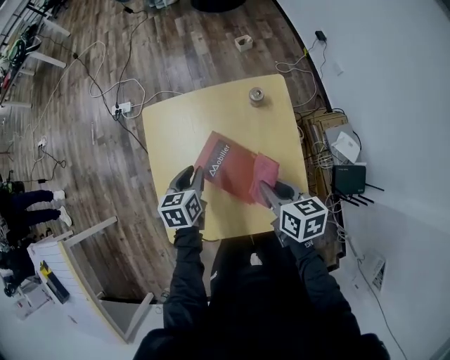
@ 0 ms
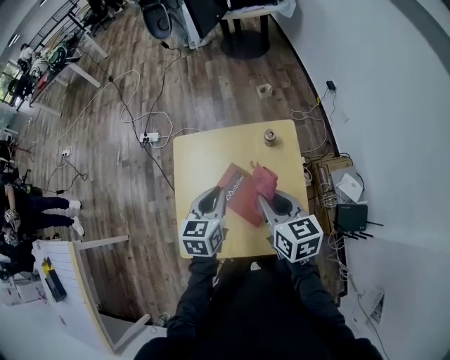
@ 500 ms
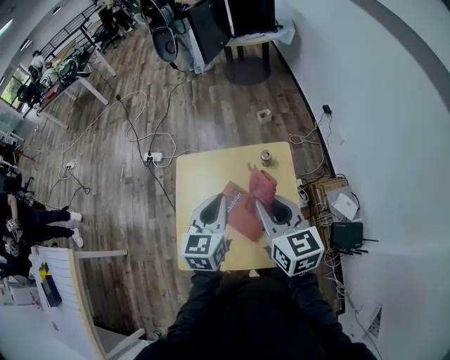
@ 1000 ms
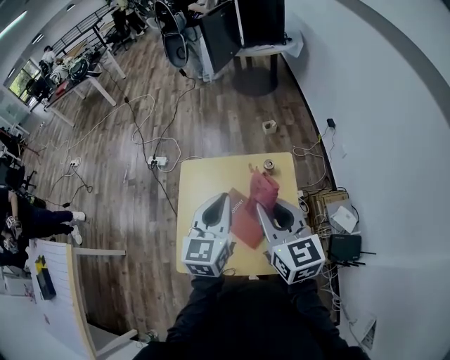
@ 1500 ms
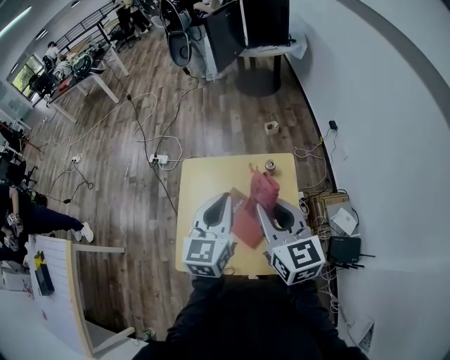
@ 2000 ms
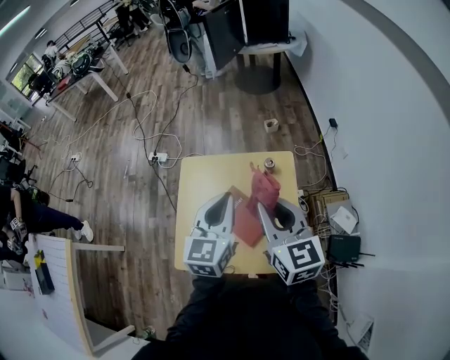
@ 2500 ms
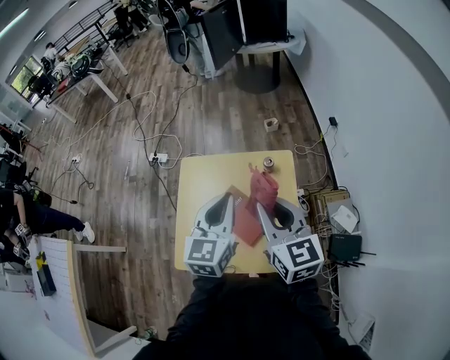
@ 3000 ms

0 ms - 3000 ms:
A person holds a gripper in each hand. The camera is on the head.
0 ms - 1500 ms: Both grippers travel together upward, approximately 30 cm. The right gripper turns by about 40 degrees. The left gripper tips its fingers upward by roughly 30 degrees.
1500 ms - 3000 ms: There are only small adjustments of the grippers.

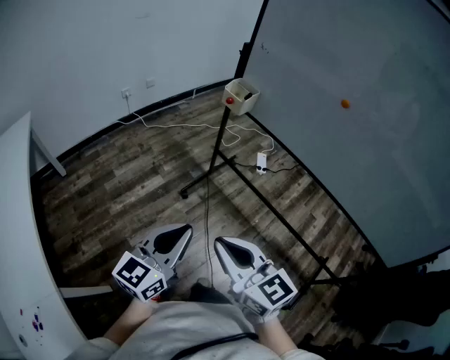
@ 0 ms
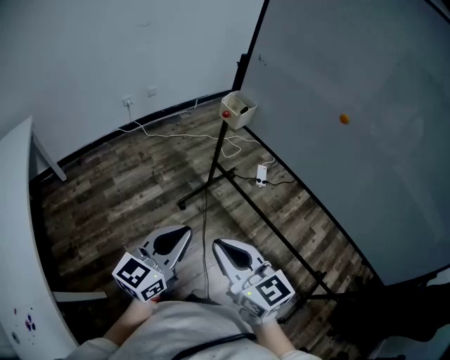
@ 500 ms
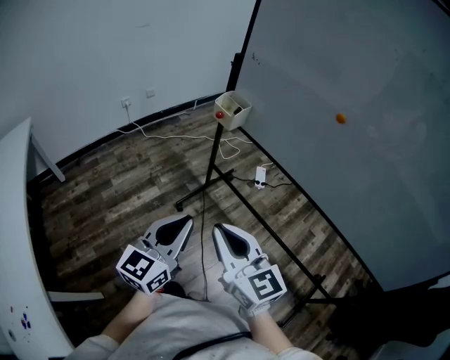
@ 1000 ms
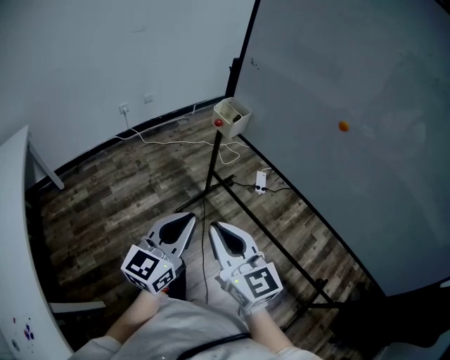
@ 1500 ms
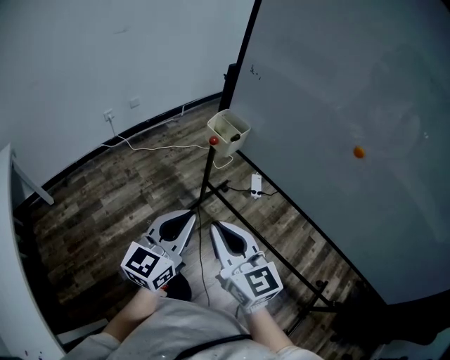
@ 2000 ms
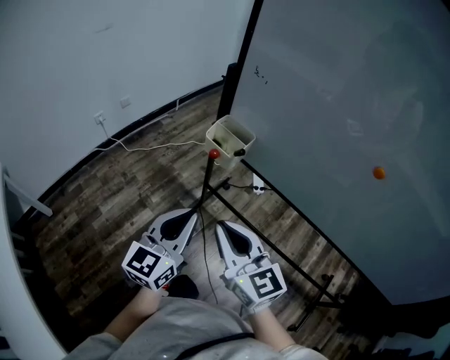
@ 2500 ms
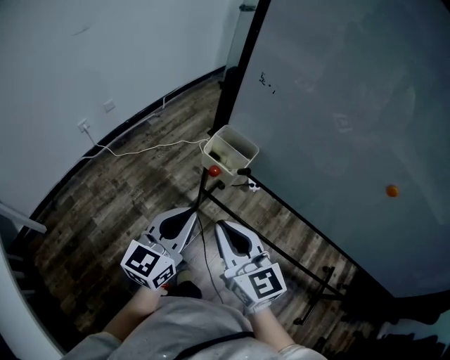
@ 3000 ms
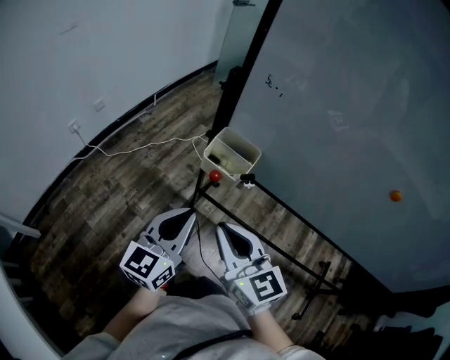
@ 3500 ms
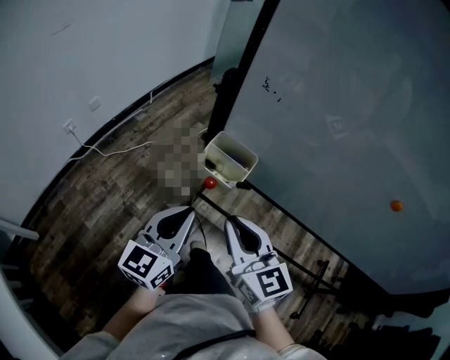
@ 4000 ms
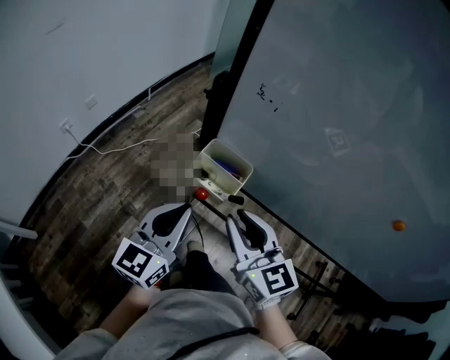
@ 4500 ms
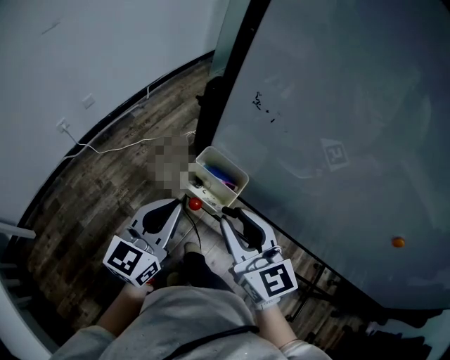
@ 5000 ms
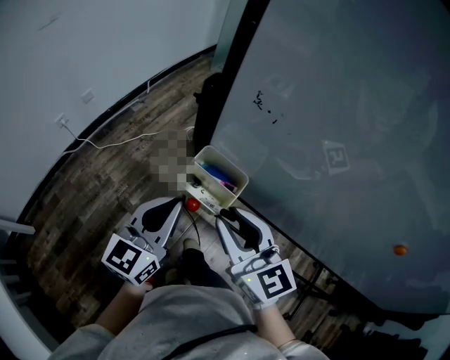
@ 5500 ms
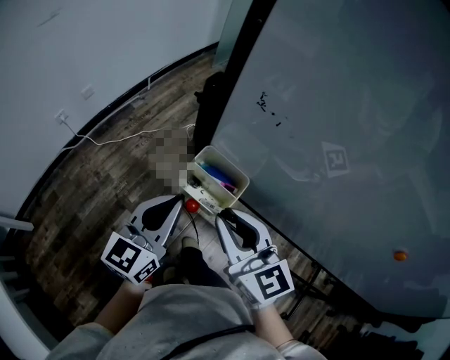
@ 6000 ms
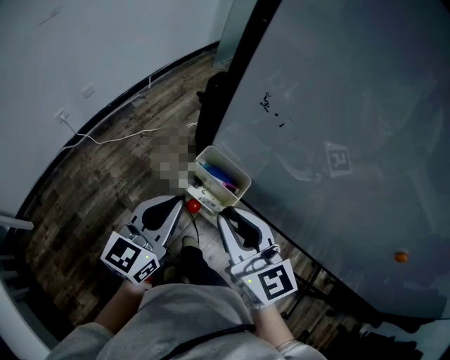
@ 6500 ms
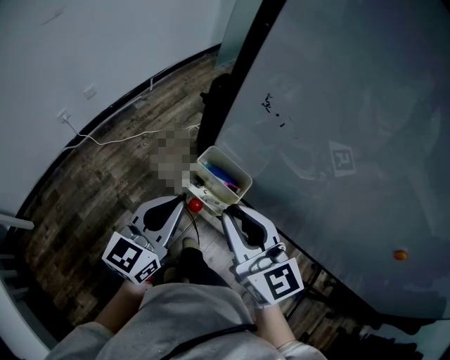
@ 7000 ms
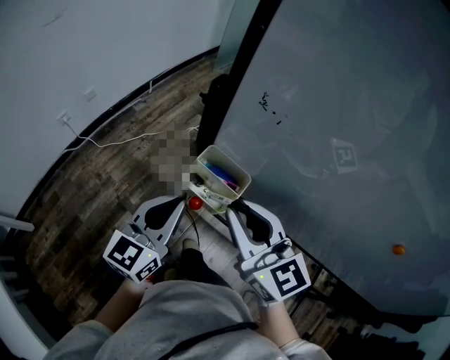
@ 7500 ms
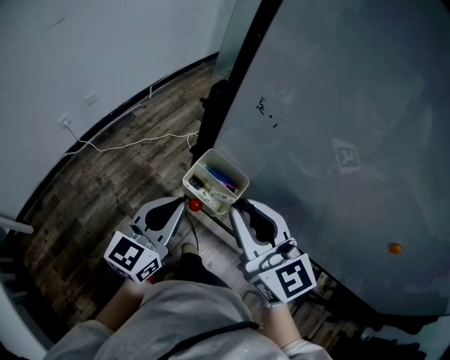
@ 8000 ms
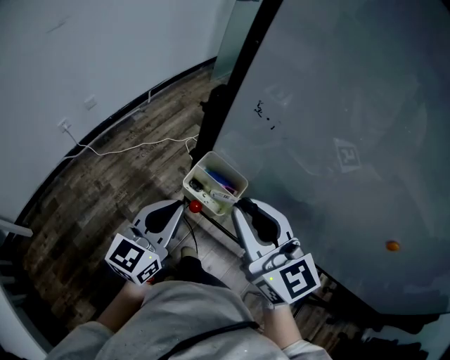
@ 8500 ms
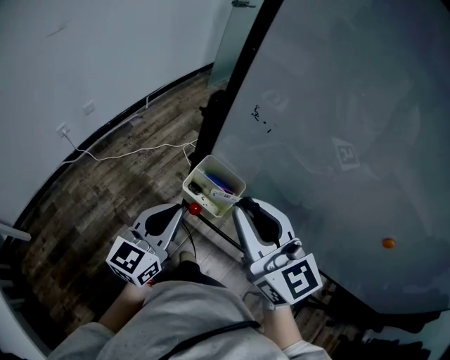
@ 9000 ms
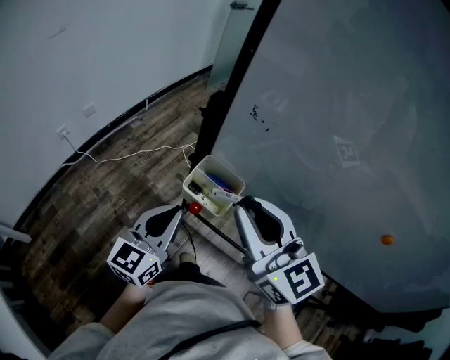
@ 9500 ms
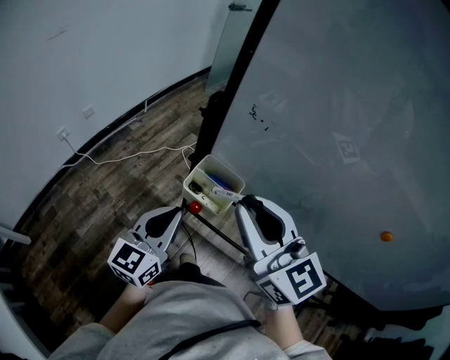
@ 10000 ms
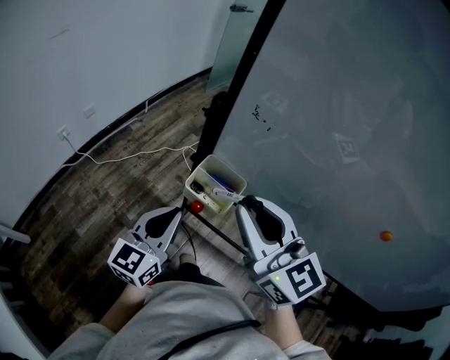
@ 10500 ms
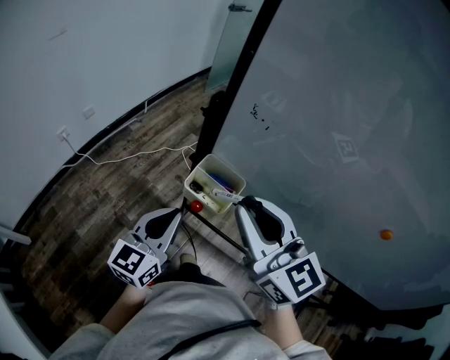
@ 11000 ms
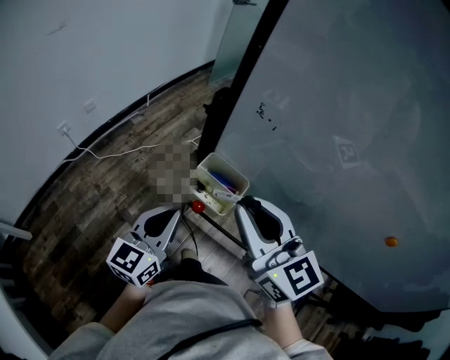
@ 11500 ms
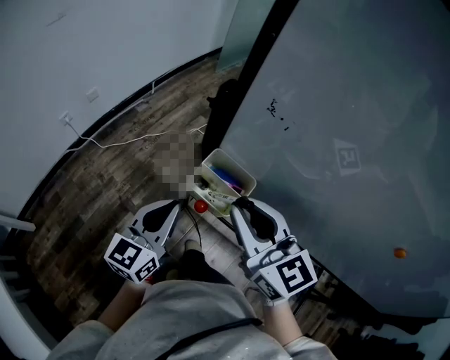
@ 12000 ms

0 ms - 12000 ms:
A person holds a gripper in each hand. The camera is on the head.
0 ms - 2000 ms: The two grippers go some 25 cm forward.
2000 ms - 4000 ms: The two grippers go roughly 25 cm forward.
4000 ms - 6000 ms: The grippers both shift forward by roughly 10 cm.
6000 ms - 8000 ms: The right gripper moves upward, approximately 5 cm.
8000 ms - 10000 ms: The right gripper is displaced upward by some 5 cm.
10000 ms - 12000 ms: The right gripper moves downward, approximately 5 cm.

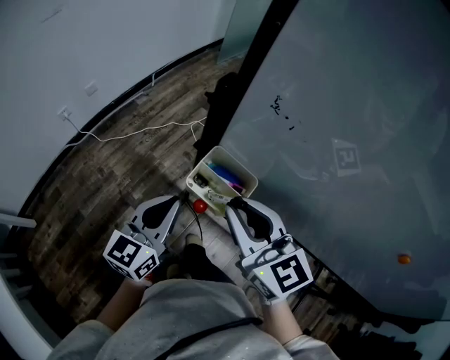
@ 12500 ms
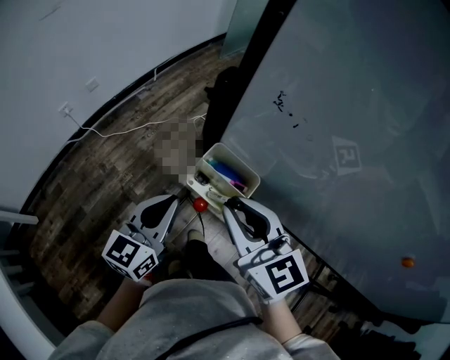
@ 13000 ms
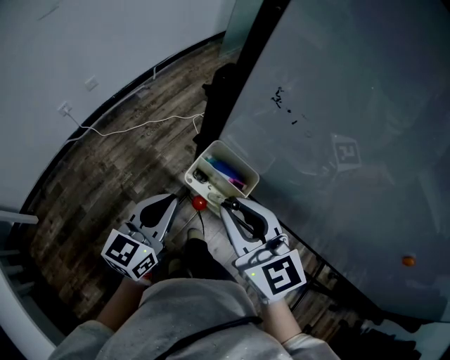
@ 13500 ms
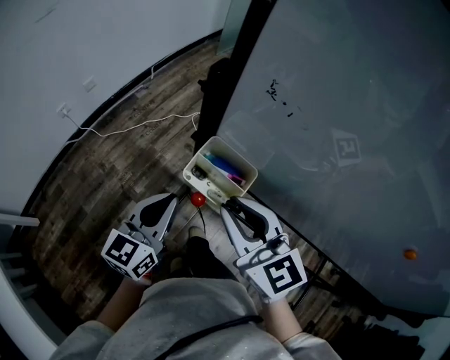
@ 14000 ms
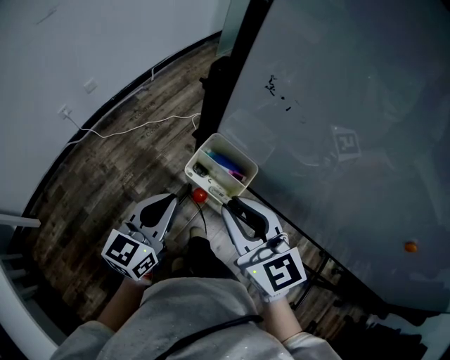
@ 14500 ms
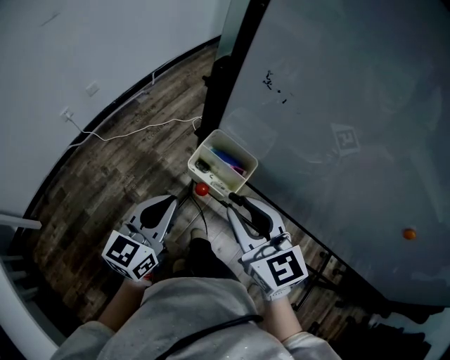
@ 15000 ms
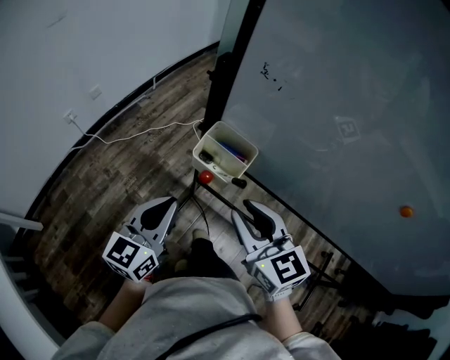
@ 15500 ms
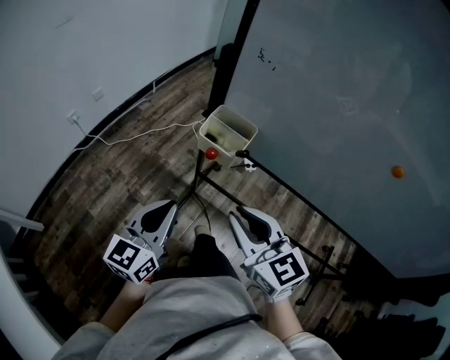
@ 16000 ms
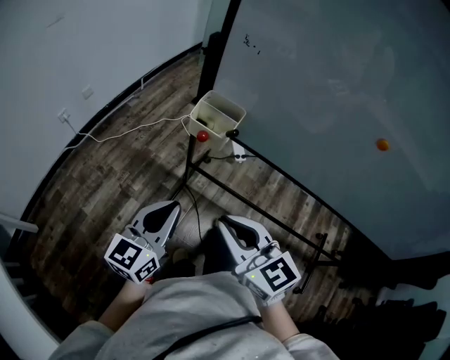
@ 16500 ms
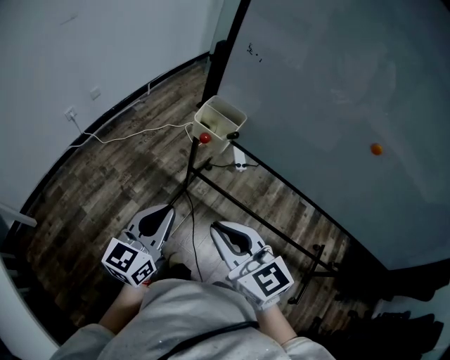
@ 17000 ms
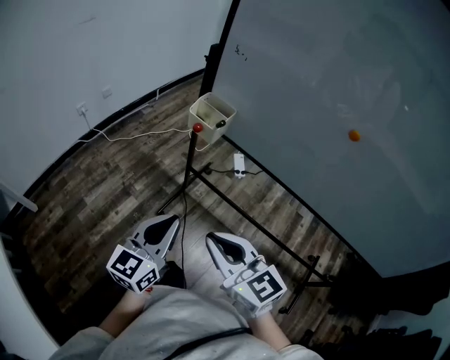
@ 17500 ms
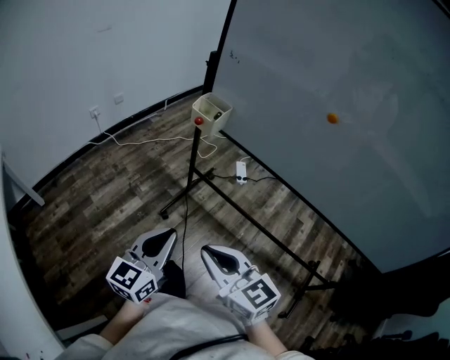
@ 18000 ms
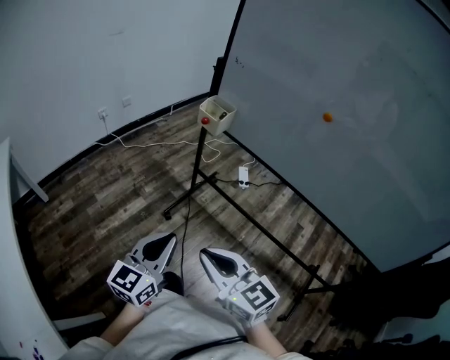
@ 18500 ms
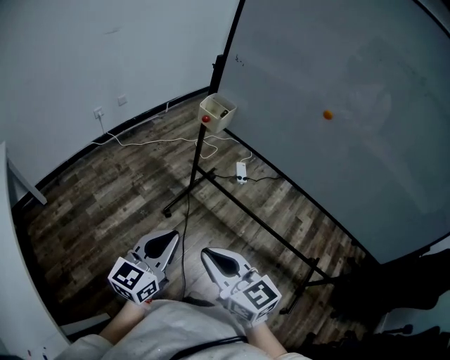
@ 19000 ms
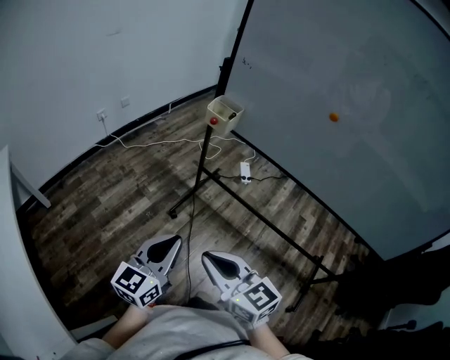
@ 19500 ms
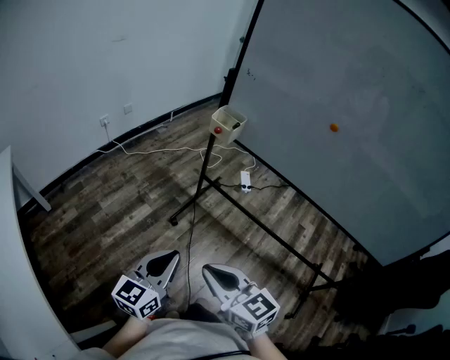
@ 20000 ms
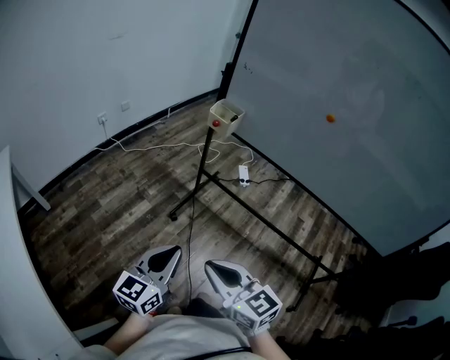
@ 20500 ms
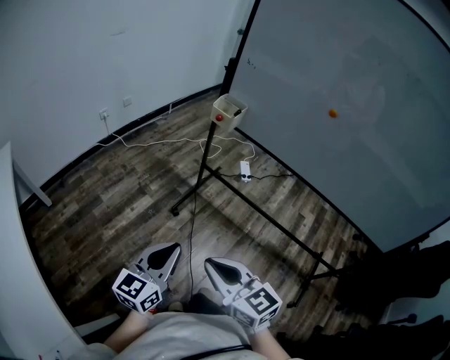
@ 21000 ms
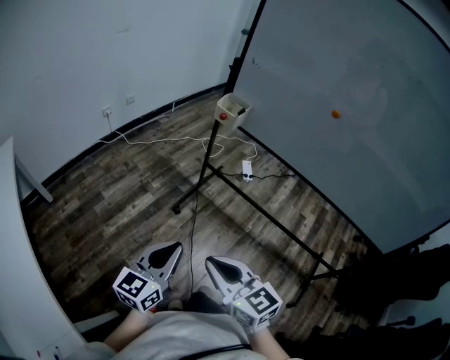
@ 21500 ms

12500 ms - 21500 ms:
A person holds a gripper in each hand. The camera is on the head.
12500 ms - 14500 ms: The grippers make only small movements.
14500 ms - 17000 ms: Both grippers travel together backward, approximately 25 cm.
17000 ms - 19500 ms: Both grippers travel together backward, about 30 cm.
19500 ms - 21500 ms: Both grippers travel together backward, roughly 5 cm.

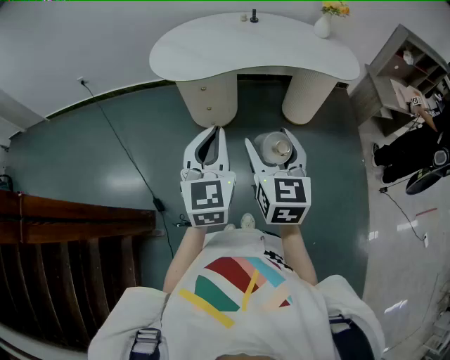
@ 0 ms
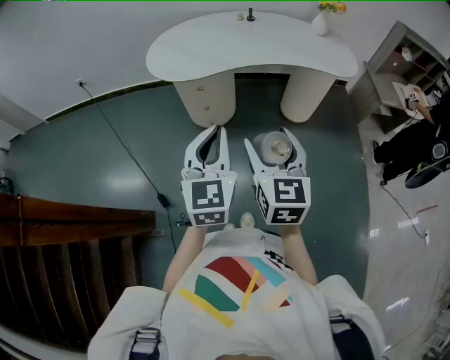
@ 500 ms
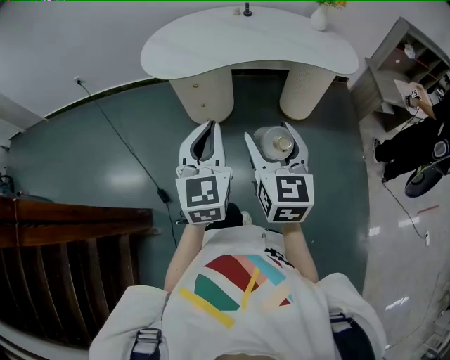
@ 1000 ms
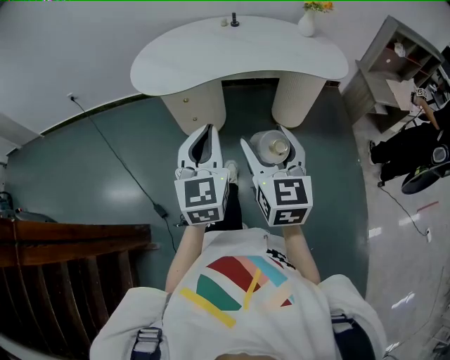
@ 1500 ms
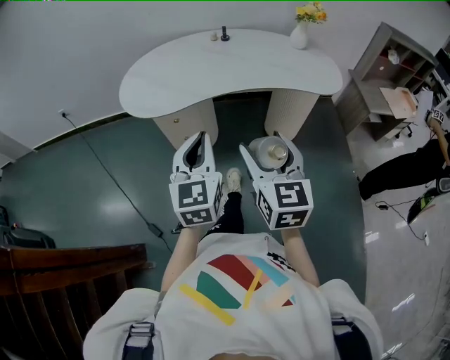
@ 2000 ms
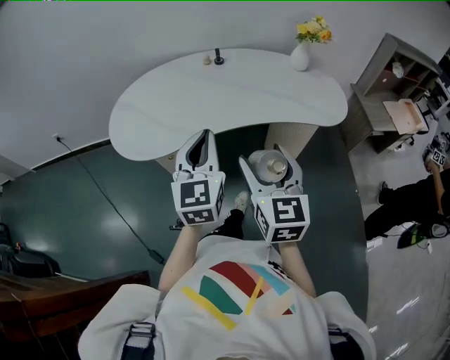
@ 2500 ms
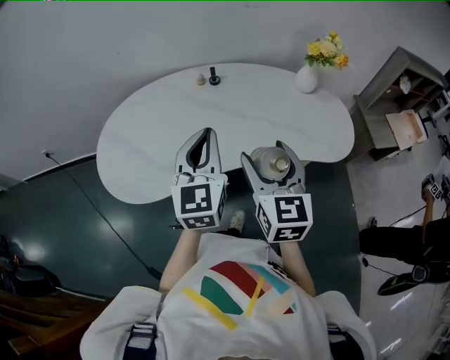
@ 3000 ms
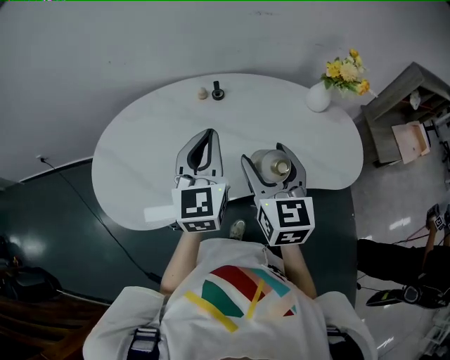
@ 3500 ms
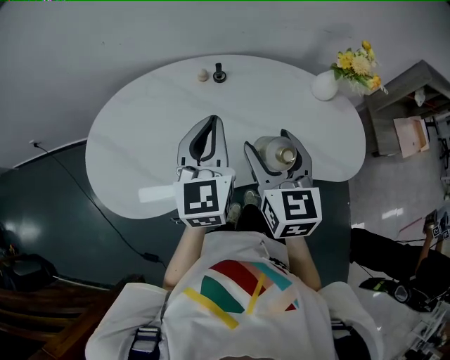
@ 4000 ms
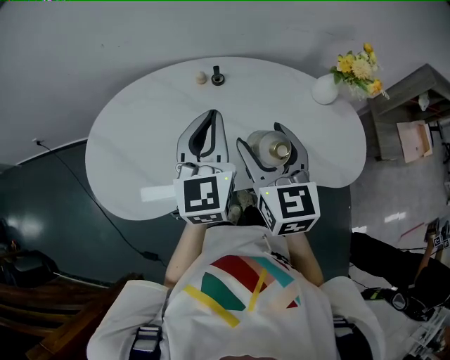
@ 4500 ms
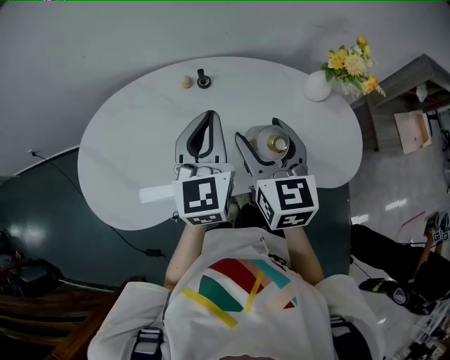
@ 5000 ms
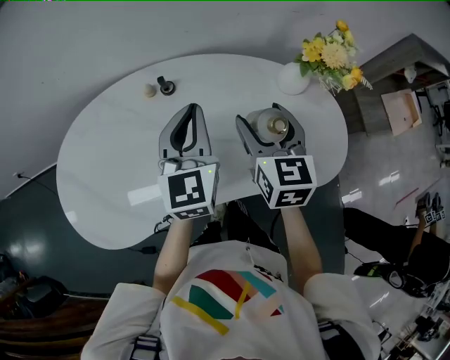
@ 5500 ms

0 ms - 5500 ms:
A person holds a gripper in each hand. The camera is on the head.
0 ms - 2000 ms: The two grippers go about 15 cm forward and to the right.
2000 ms - 3500 ms: The two grippers travel together, forward, approximately 40 cm.
3500 ms - 5500 ms: The grippers both shift forward and to the right by about 20 cm.
